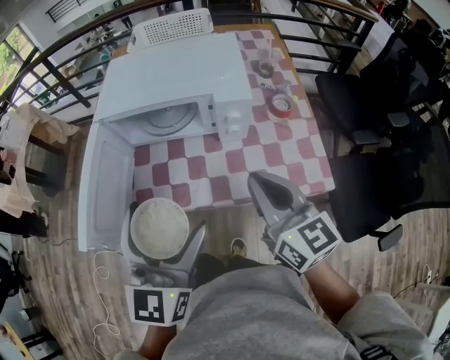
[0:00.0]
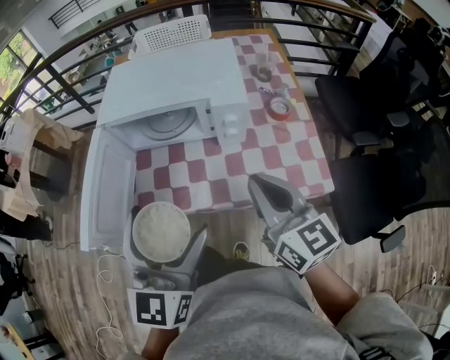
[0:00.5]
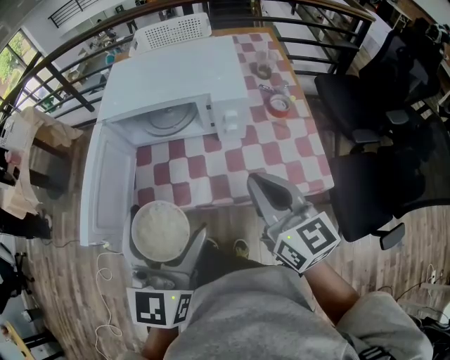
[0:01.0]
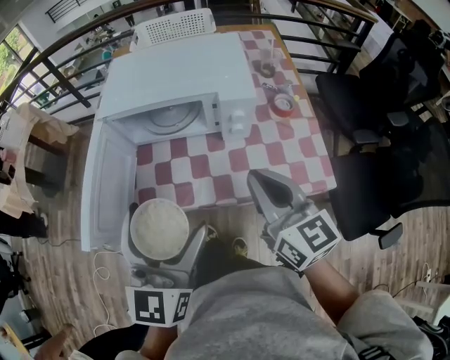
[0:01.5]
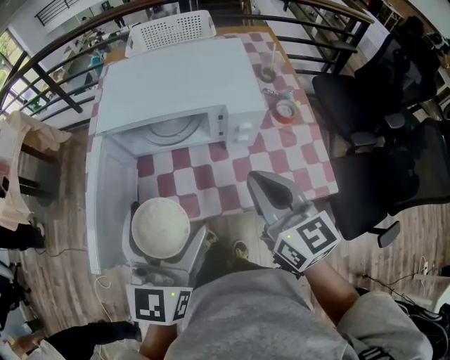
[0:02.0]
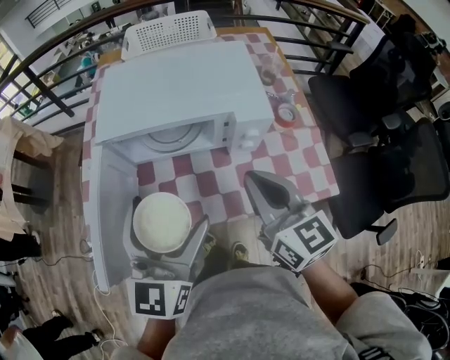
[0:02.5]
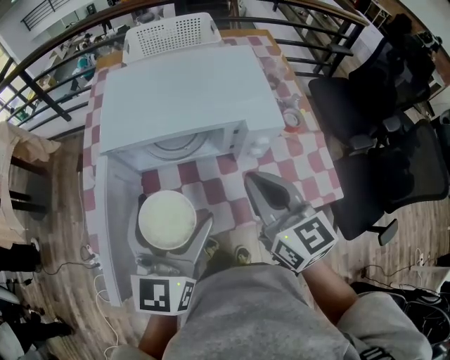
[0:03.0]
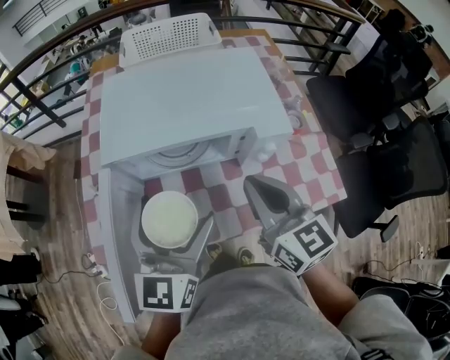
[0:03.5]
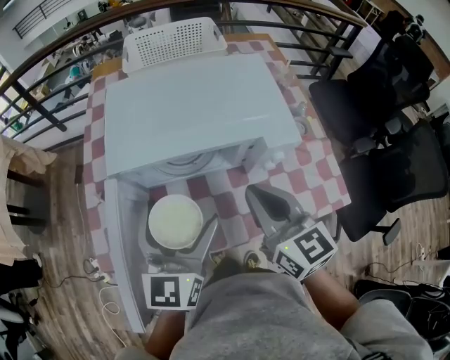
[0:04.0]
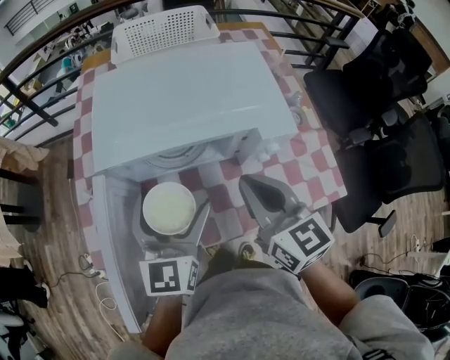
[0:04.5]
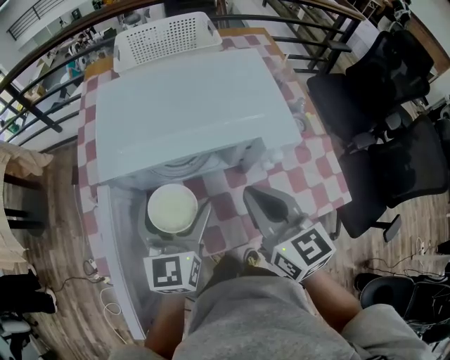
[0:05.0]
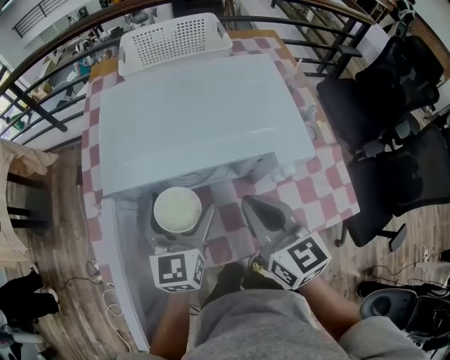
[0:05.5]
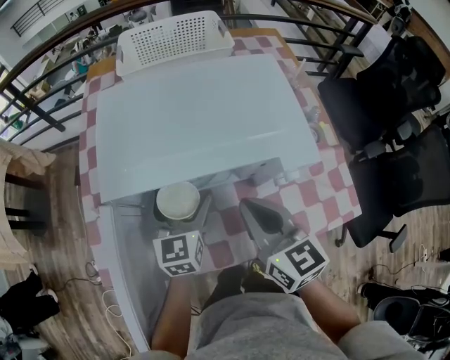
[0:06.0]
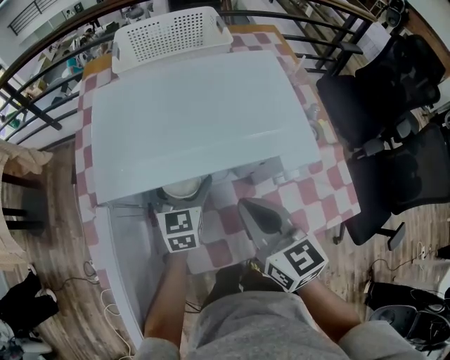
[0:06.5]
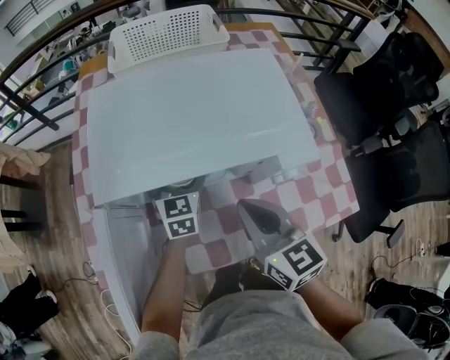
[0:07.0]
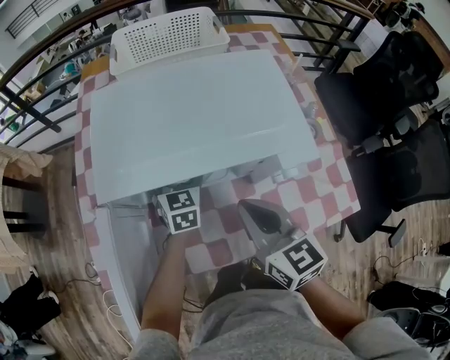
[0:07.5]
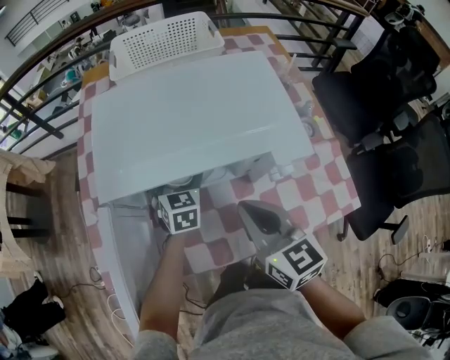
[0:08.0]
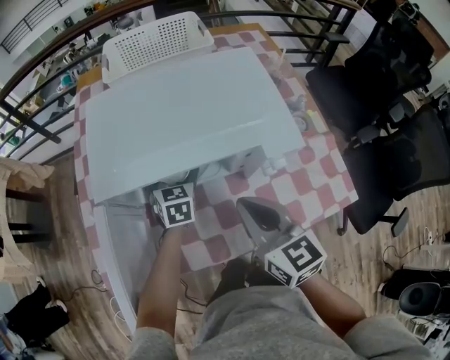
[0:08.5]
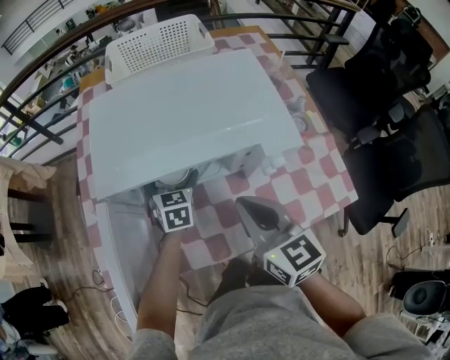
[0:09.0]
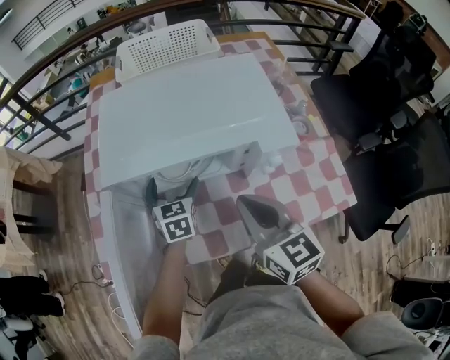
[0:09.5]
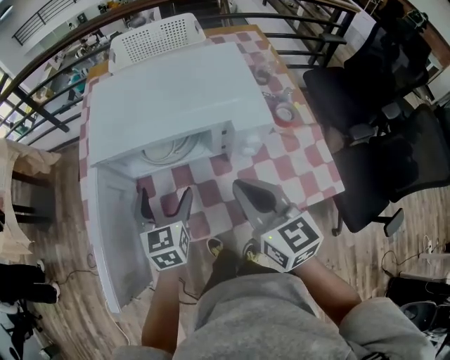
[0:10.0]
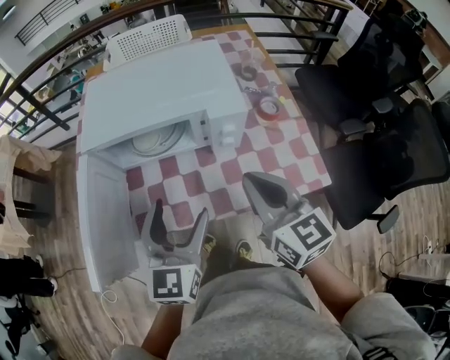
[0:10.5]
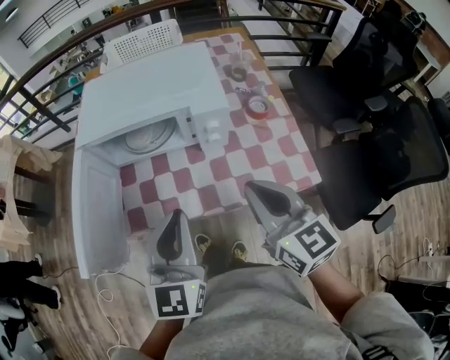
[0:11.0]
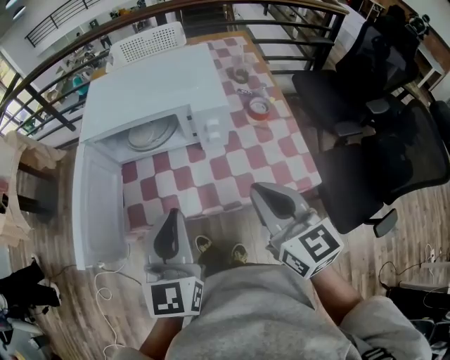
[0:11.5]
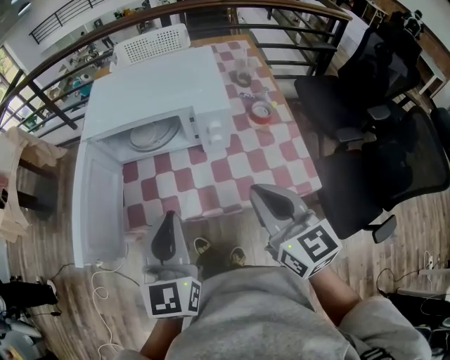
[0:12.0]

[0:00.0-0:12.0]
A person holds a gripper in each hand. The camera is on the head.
0:00.0 to 0:02.0: The left gripper moves approximately 5 cm. The right gripper shifts by roughly 5 cm.
0:02.0 to 0:04.0: The left gripper travels forward, downward and to the left by roughly 15 cm. The right gripper travels forward and to the left by approximately 10 cm.
0:04.0 to 0:06.0: The right gripper travels downward by roughly 5 cm, while the left gripper moves downward and forward, roughly 20 cm.
0:06.0 to 0:08.0: The left gripper heads forward and downward, covering some 10 cm, and swivels roughly 20 degrees.
0:08.0 to 0:10.0: The left gripper shifts roughly 20 cm backward and upward; the right gripper heads backward, covering about 5 cm.
0:10.0 to 0:12.0: The left gripper travels backward, upward and to the right by roughly 25 cm, and closes up. Meanwhile the right gripper heads backward and to the right, covering roughly 15 cm.

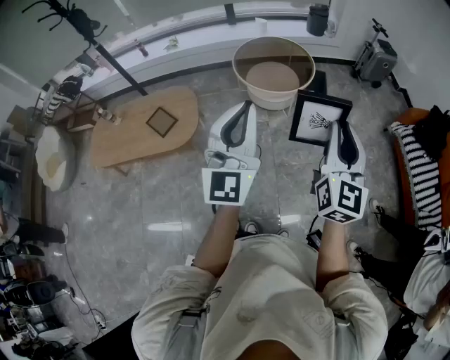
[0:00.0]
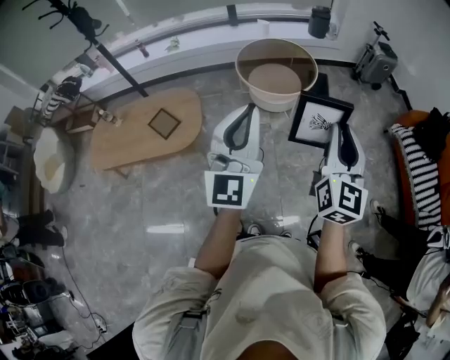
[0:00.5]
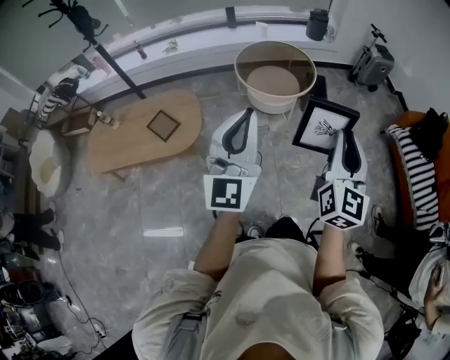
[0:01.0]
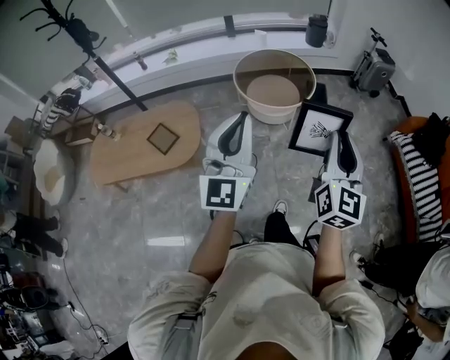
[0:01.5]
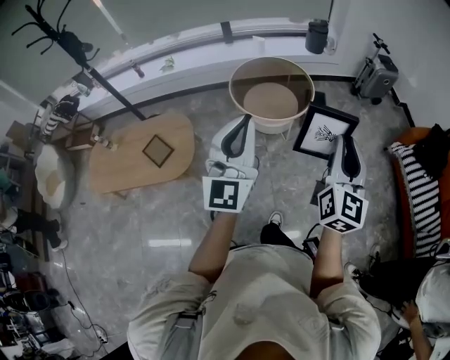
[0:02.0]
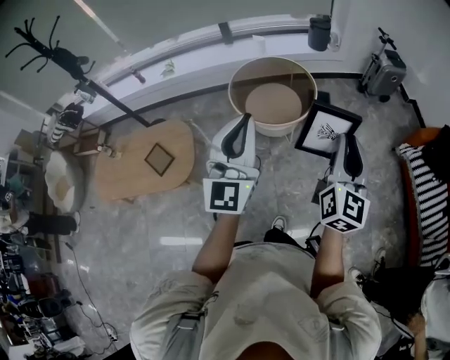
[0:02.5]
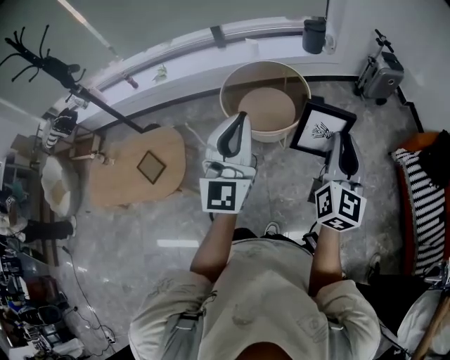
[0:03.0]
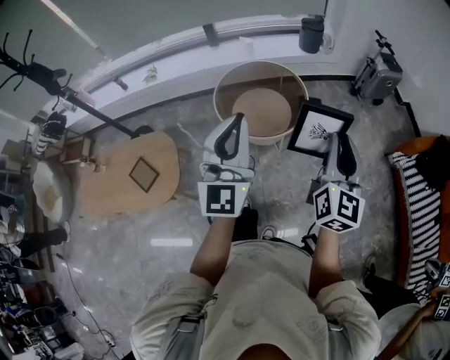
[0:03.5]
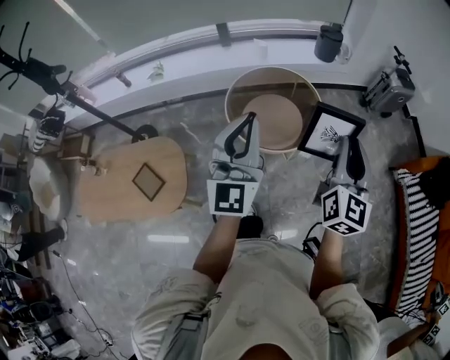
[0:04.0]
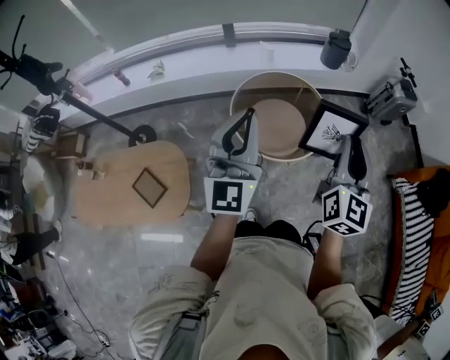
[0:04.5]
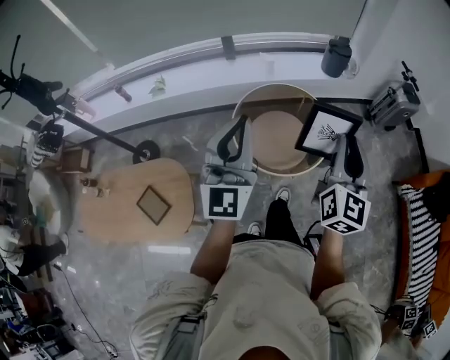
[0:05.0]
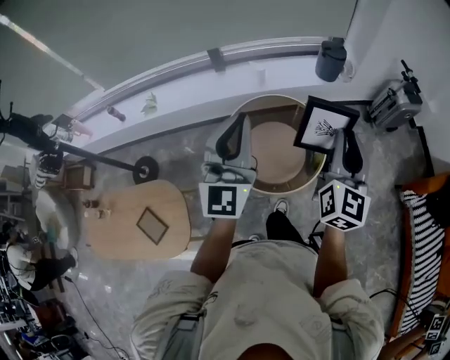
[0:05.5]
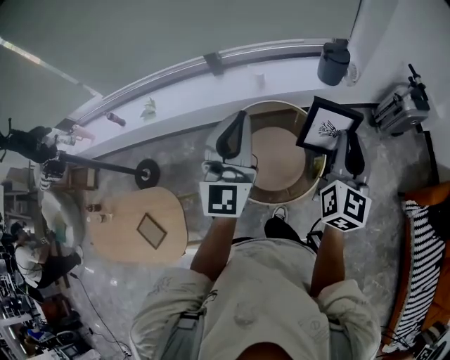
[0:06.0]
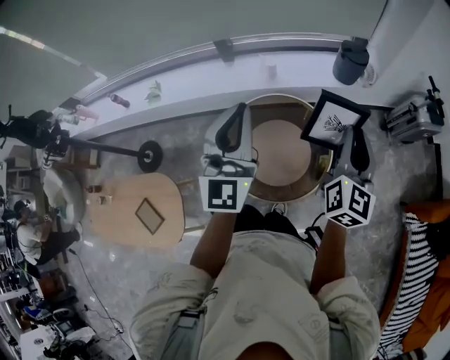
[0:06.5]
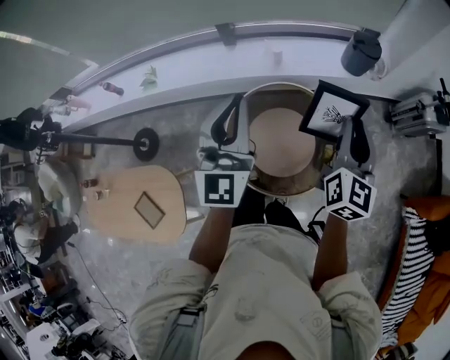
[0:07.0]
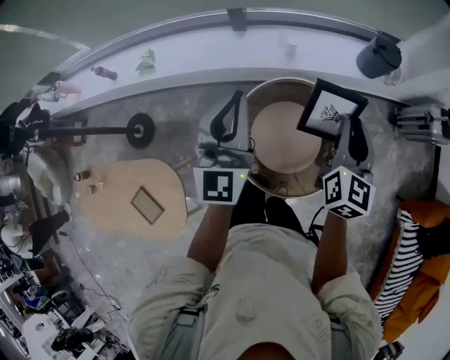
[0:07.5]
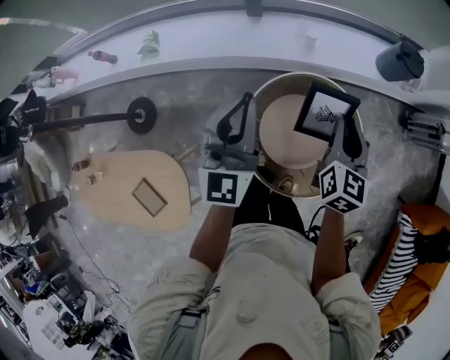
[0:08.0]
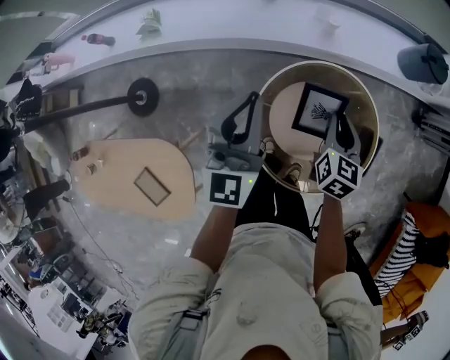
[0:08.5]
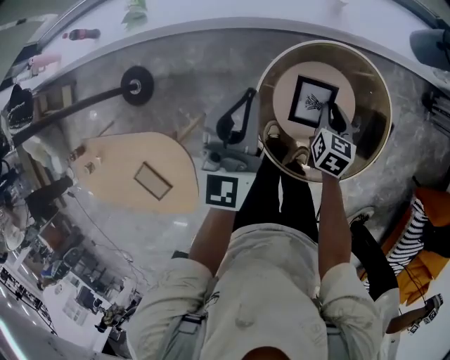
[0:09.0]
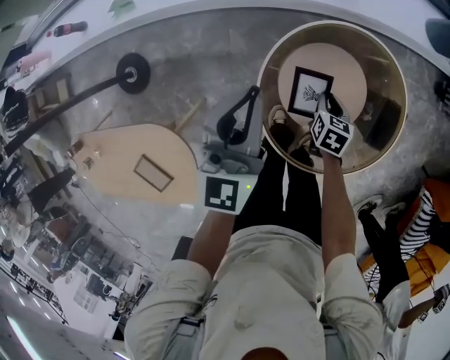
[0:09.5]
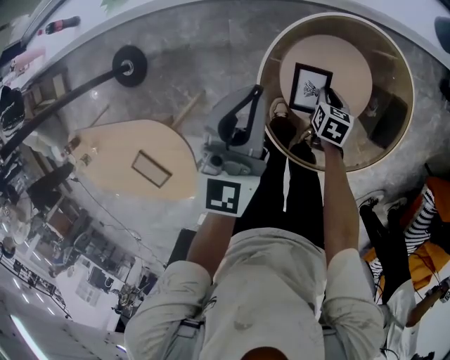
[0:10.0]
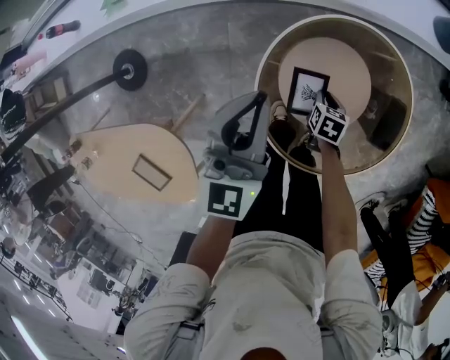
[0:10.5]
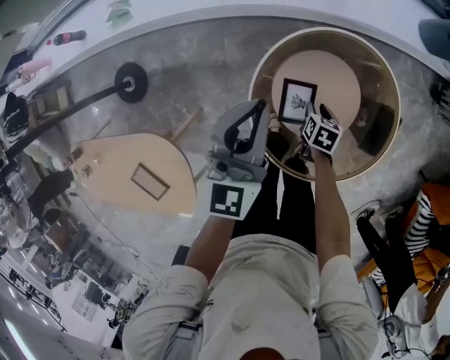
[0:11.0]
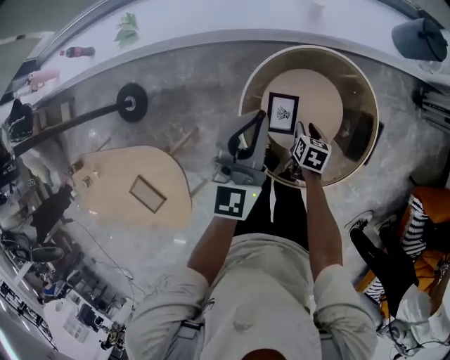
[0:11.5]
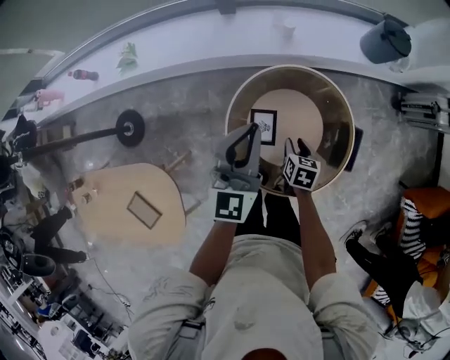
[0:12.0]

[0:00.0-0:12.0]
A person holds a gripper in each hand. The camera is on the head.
0:00.0 to 0:02.0: The two grippers go approximately 15 cm forward.
0:02.0 to 0:04.0: The two grippers go roughly 30 cm forward.
0:04.0 to 0:06.0: Both grippers move forward, about 30 cm.
0:06.0 to 0:08.0: The two grippers go approximately 35 cm to the left, forward and downward. The right gripper changes its angle by roughly 30 degrees.
0:08.0 to 0:10.0: The right gripper shifts some 40 cm downward, and tilts its fingers some 40 degrees downward; the left gripper goes roughly 20 cm downward.
0:10.0 to 0:12.0: The right gripper heads upward, covering some 15 cm, while the left gripper travels upward, to the right and backward by roughly 15 cm.

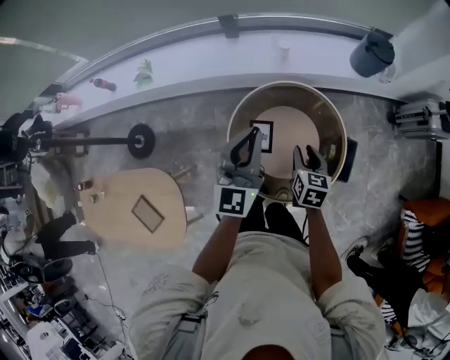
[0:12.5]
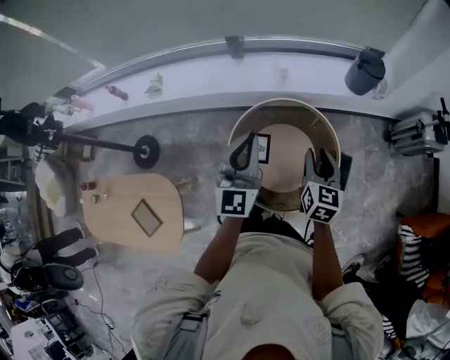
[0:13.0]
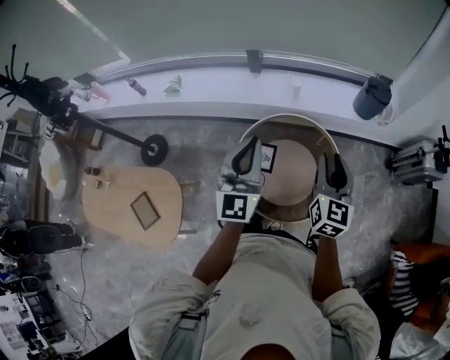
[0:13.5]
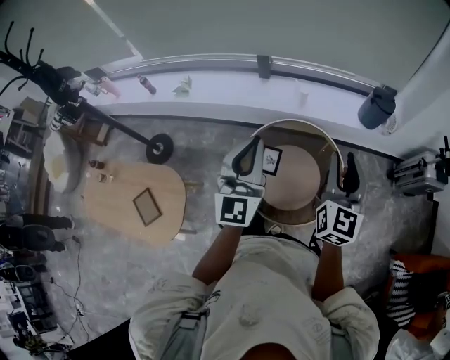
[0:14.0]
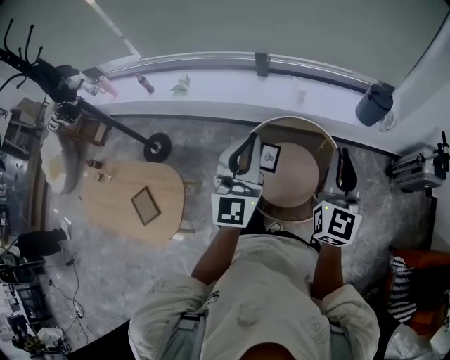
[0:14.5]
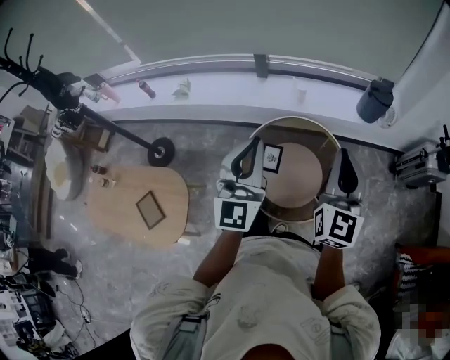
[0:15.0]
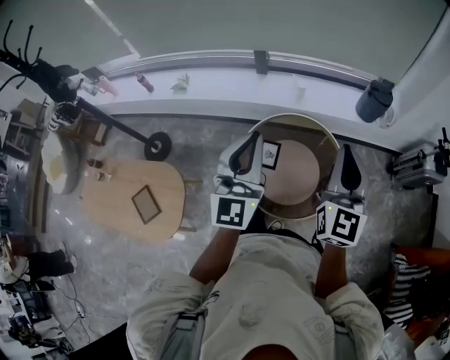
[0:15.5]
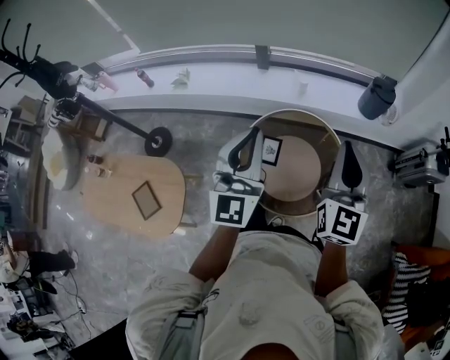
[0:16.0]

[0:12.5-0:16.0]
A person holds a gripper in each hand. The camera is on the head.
0:12.5 to 0:14.5: The left gripper heads upward and backward, covering some 20 cm. Meanwhile the right gripper travels upward by about 30 cm, points its fingers about 40 degrees further upward, and closes.
0:14.5 to 0:16.0: There are only small adjustments of the grippers.
